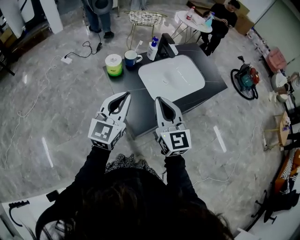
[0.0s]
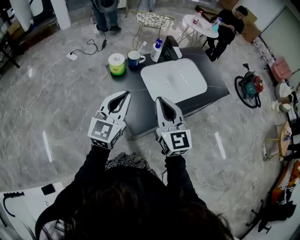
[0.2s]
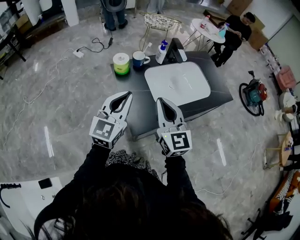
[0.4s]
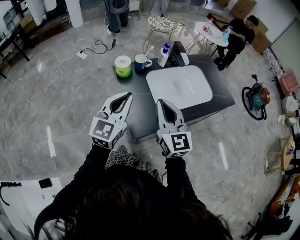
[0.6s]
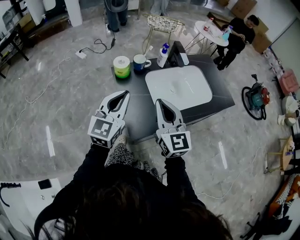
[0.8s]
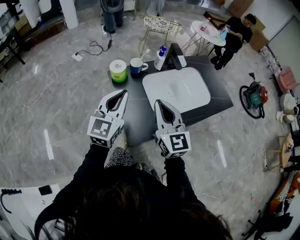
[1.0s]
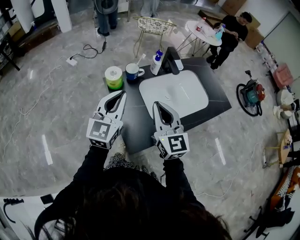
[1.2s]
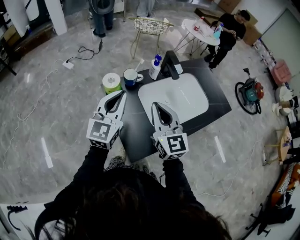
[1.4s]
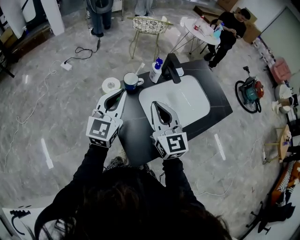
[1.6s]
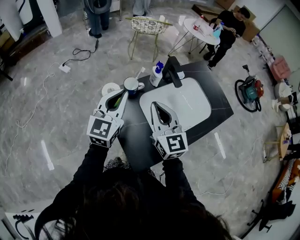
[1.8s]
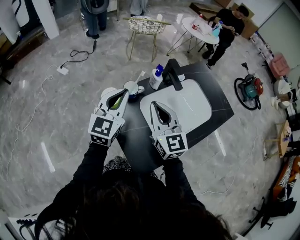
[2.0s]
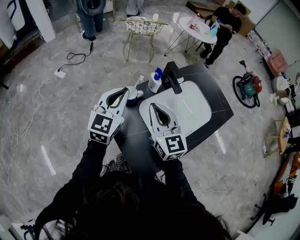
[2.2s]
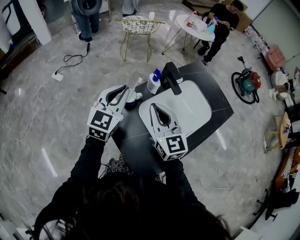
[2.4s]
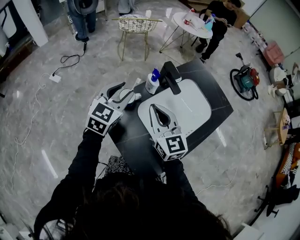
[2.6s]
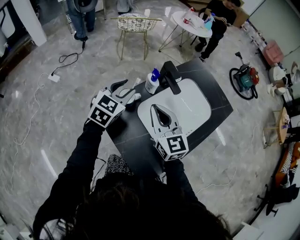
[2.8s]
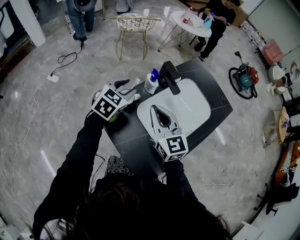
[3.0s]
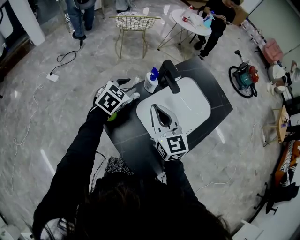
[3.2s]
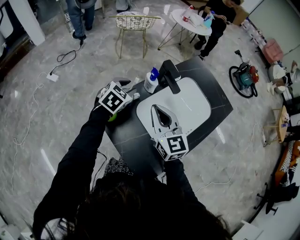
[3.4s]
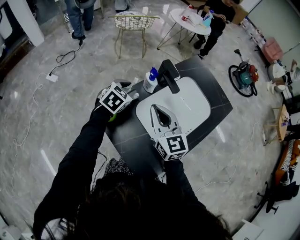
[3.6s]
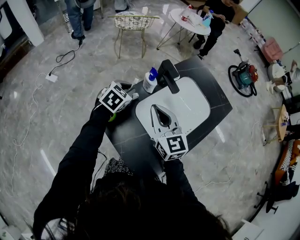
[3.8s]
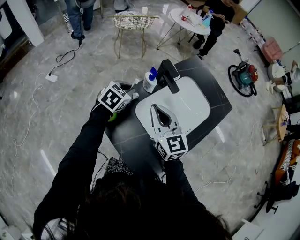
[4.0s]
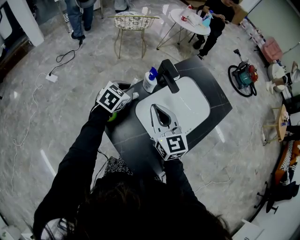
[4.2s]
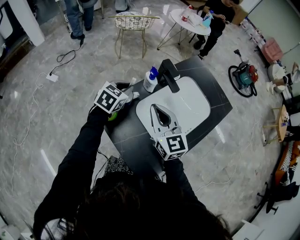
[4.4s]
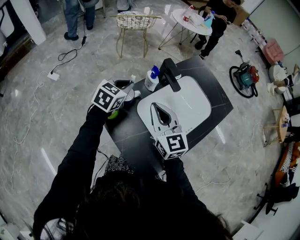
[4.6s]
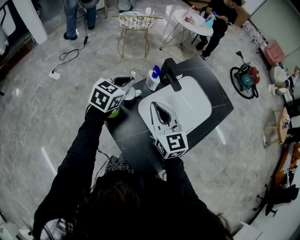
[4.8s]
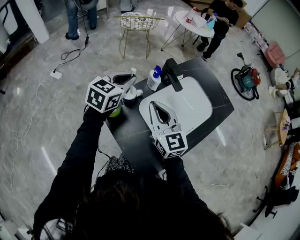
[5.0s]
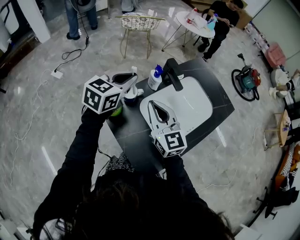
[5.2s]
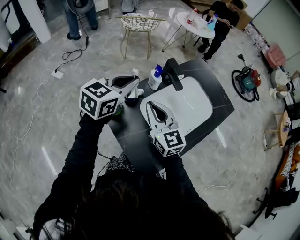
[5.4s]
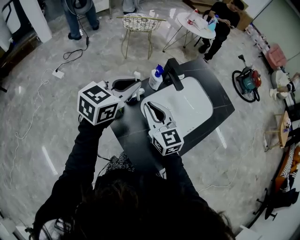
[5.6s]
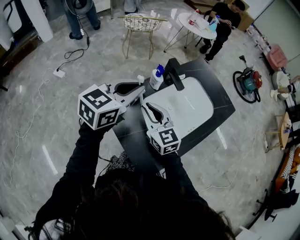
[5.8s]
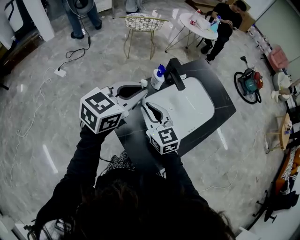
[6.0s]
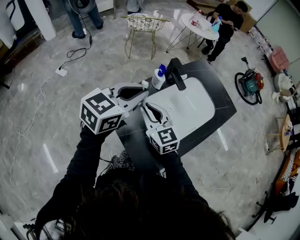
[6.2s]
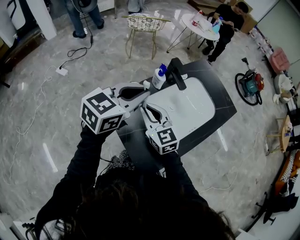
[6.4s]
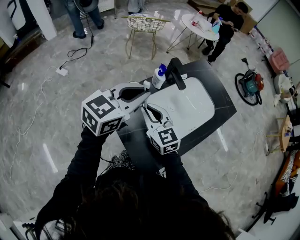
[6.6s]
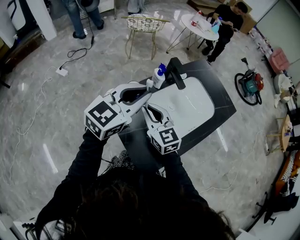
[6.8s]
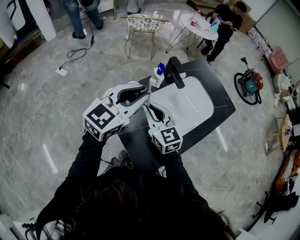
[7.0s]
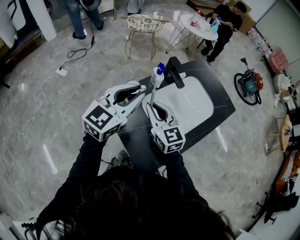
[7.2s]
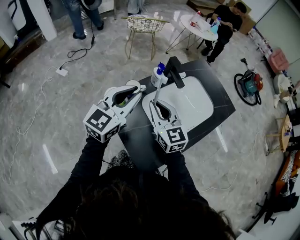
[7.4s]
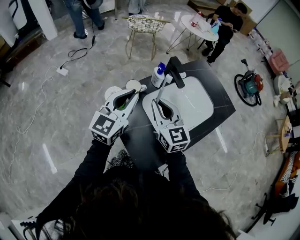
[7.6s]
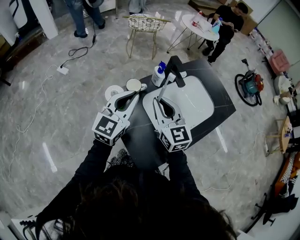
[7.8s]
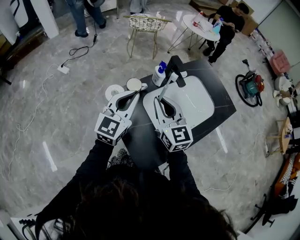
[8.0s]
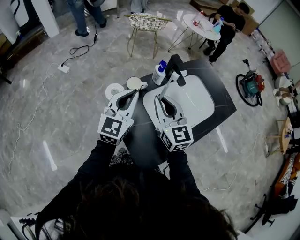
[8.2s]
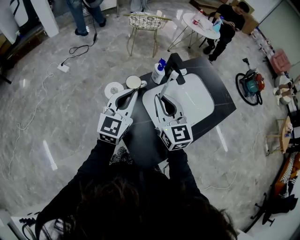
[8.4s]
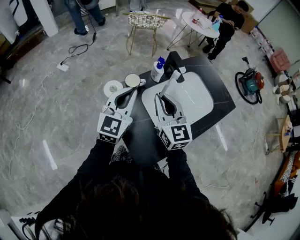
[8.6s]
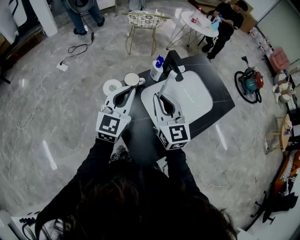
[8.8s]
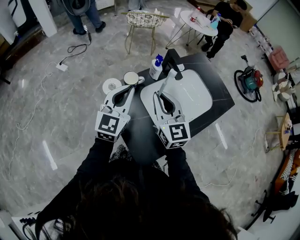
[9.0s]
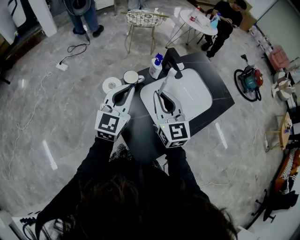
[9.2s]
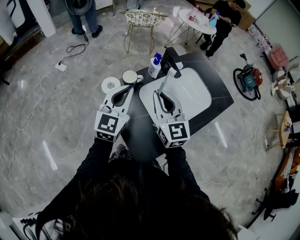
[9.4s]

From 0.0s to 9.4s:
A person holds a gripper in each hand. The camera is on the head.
From 0.0s to 1.6s: The grippers both shift forward by approximately 15 cm.
From 1.6s to 3.2s: The right gripper heads forward, covering about 10 cm; the left gripper travels forward and downward by some 20 cm, points its fingers about 40 degrees further downward, and opens up.
From 3.2s to 4.8s: The left gripper closes up.
From 4.8s to 6.2s: The left gripper travels upward and backward by approximately 15 cm. The right gripper moves some 5 cm.
From 6.2s to 7.8s: The right gripper ends up some 5 cm from where it was, while the left gripper moves downward, some 5 cm, and swivels some 30 degrees.
From 7.8s to 9.4s: The grippers stay close to where they were, moving slightly.

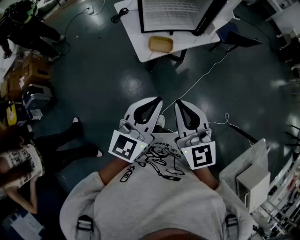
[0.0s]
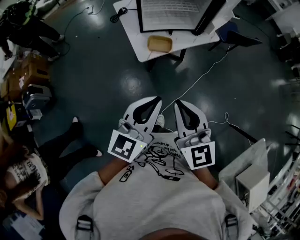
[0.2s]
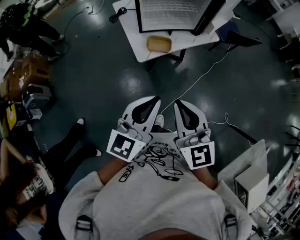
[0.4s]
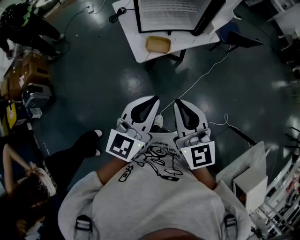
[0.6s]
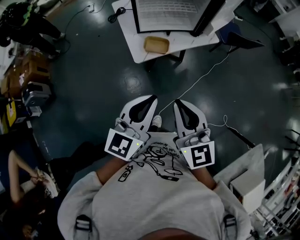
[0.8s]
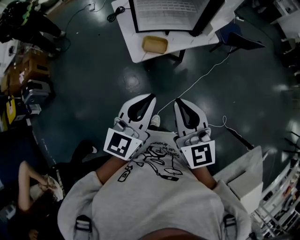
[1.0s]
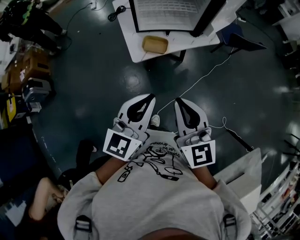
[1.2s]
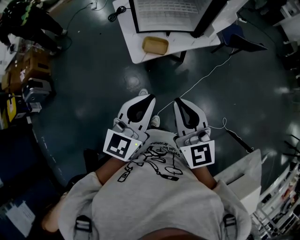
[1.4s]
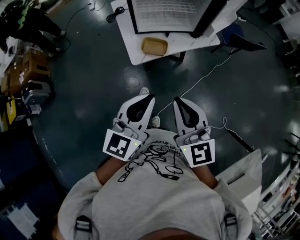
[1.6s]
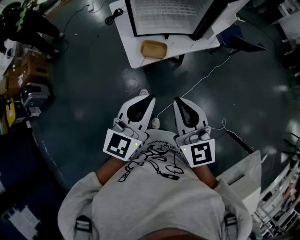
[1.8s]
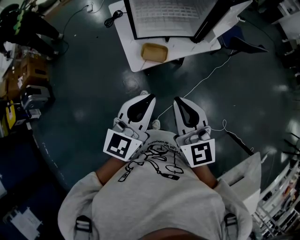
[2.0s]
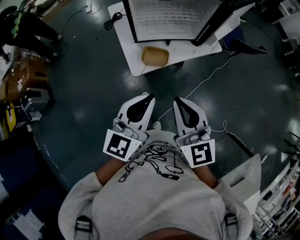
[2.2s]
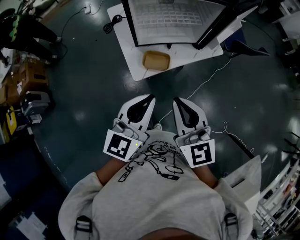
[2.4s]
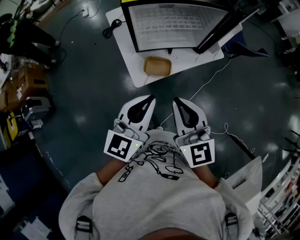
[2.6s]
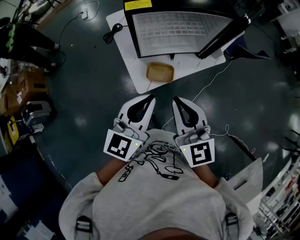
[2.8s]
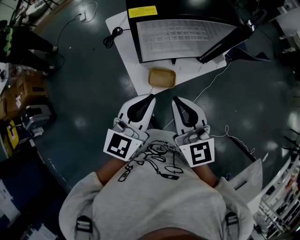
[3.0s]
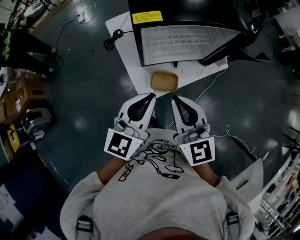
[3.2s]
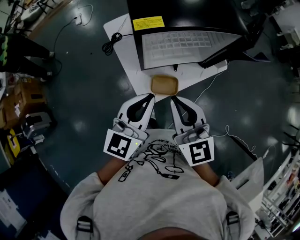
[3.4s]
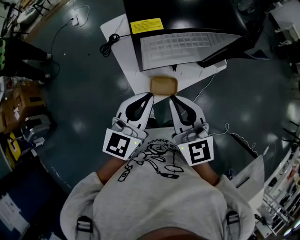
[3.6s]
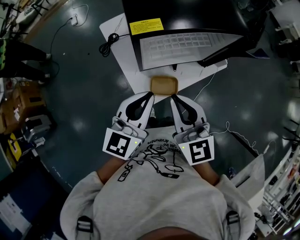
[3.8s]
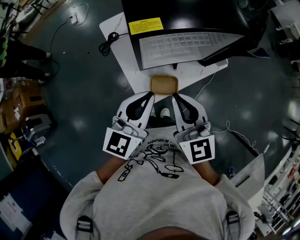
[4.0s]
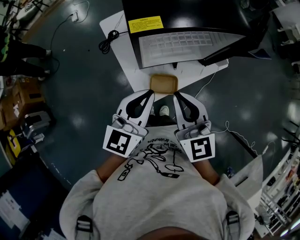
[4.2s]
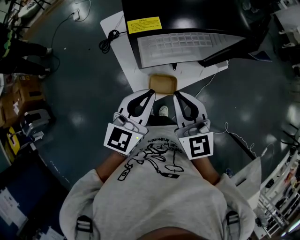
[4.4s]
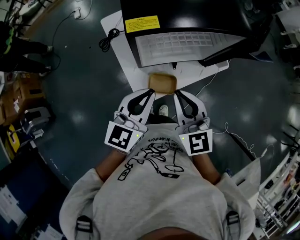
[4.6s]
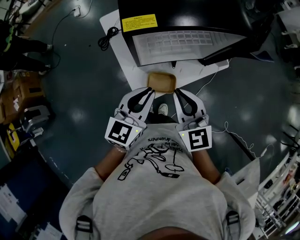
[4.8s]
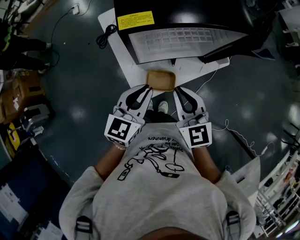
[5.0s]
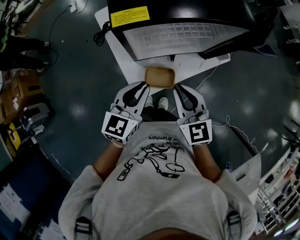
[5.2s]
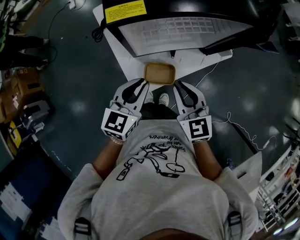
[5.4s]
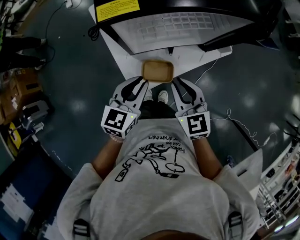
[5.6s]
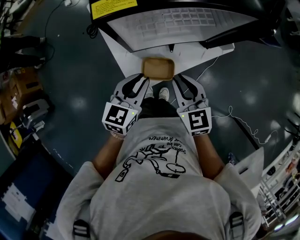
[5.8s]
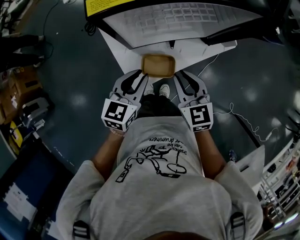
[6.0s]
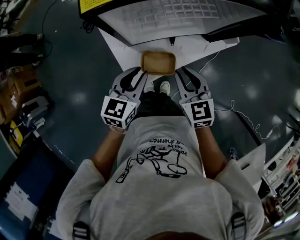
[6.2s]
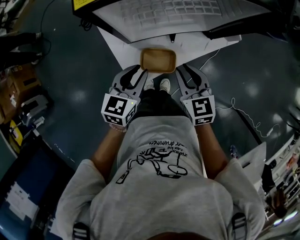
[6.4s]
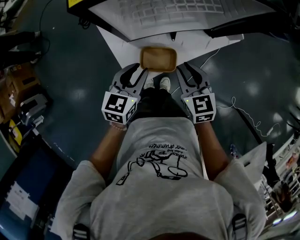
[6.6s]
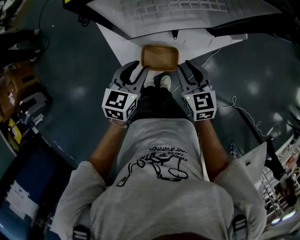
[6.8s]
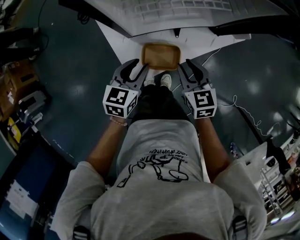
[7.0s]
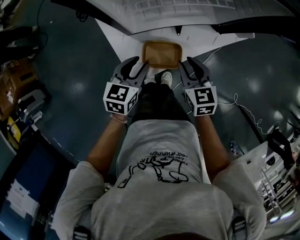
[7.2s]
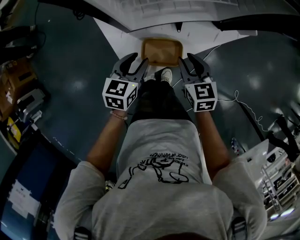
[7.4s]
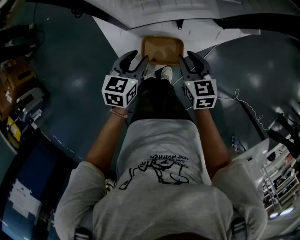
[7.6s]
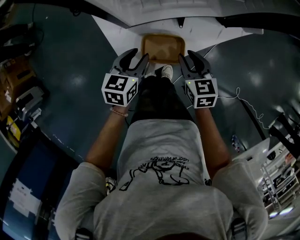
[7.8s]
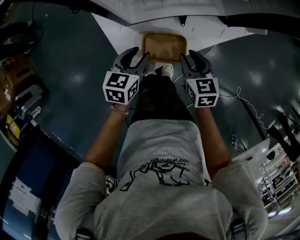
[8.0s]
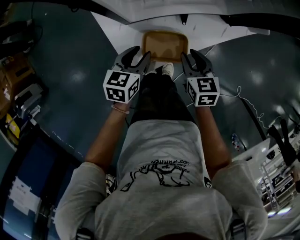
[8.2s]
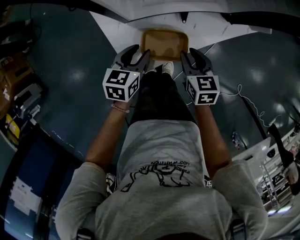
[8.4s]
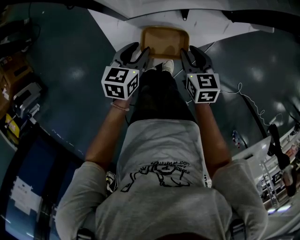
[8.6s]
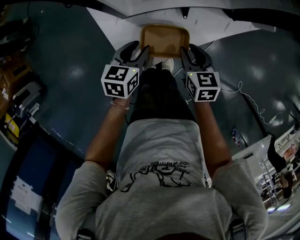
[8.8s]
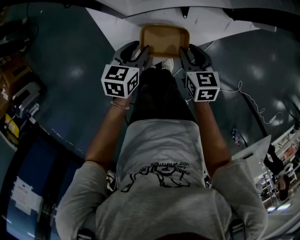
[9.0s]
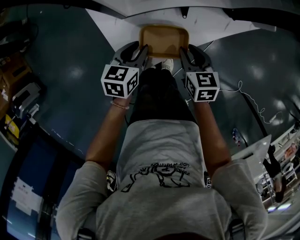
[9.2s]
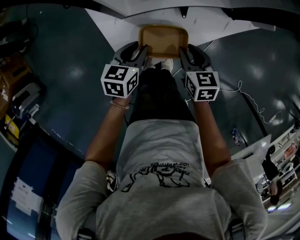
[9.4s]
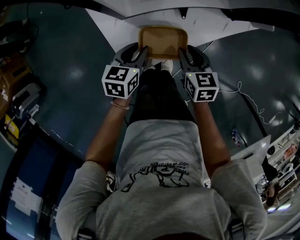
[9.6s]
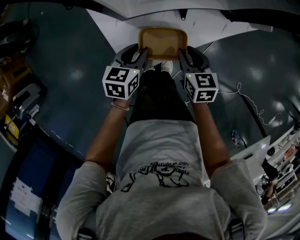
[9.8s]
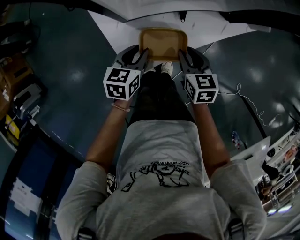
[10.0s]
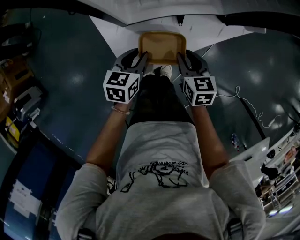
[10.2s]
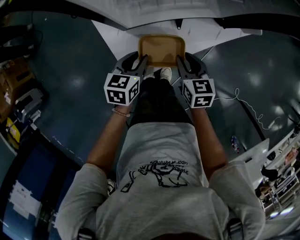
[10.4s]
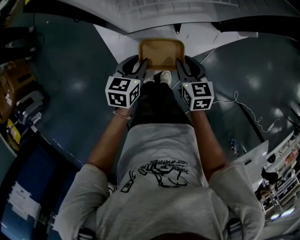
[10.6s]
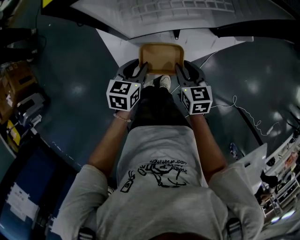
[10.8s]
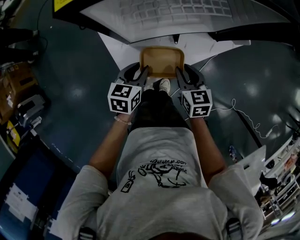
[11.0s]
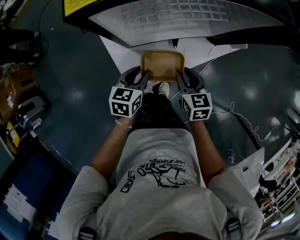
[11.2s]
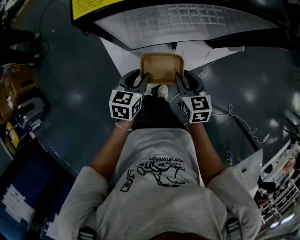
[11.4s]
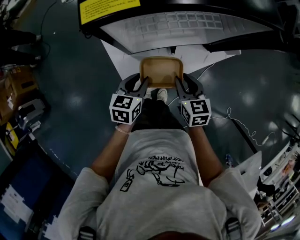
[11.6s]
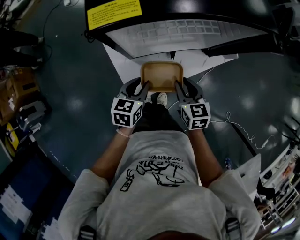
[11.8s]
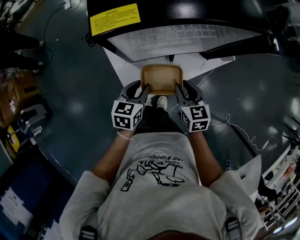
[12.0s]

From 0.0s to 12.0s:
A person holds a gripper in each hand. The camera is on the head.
From 0.0s to 1.6s: The right gripper is displaced forward and to the right by about 10 cm. Meanwhile the left gripper shifts roughly 5 cm forward.
From 1.6s to 3.0s: The left gripper moves forward, approximately 25 cm, while the right gripper moves forward and to the left, approximately 25 cm.
From 3.0s to 4.4s: Both grippers move forward, approximately 10 cm.
From 4.4s to 6.0s: Both grippers move downward, some 15 cm. The right gripper swivels some 20 degrees.
From 6.0s to 7.6s: Both grippers travel together downward, some 15 cm.
From 7.6s to 9.0s: Both grippers travel together downward, roughly 5 cm.
From 9.0s to 10.4s: The grippers move only a little.
From 10.4s to 12.0s: The two grippers go about 10 cm upward.

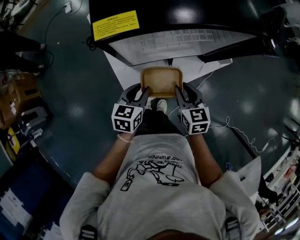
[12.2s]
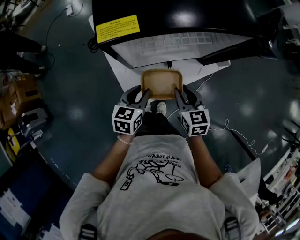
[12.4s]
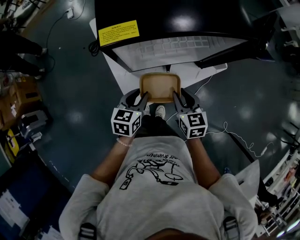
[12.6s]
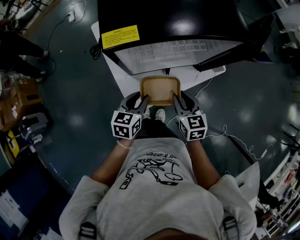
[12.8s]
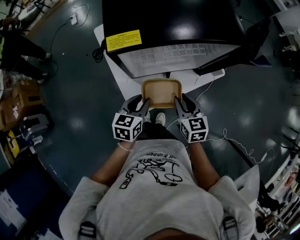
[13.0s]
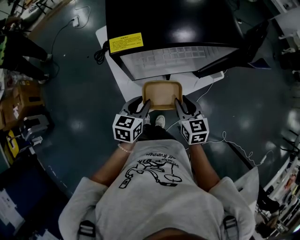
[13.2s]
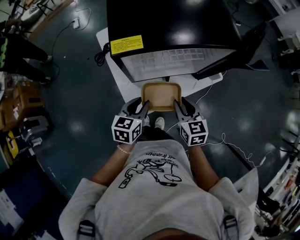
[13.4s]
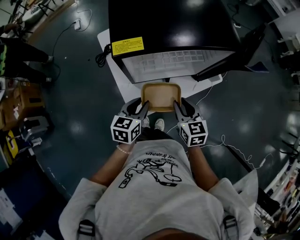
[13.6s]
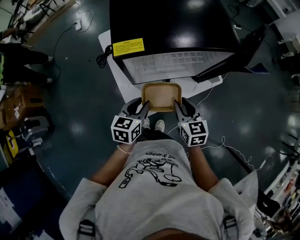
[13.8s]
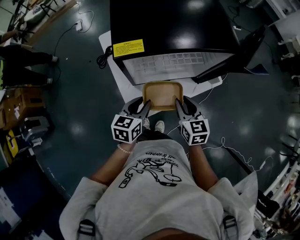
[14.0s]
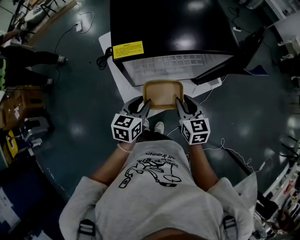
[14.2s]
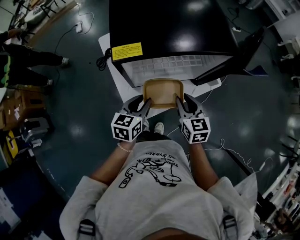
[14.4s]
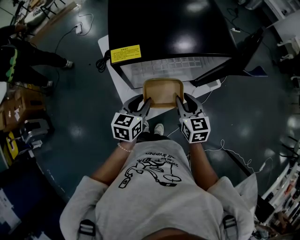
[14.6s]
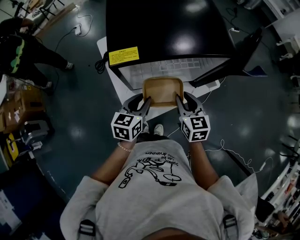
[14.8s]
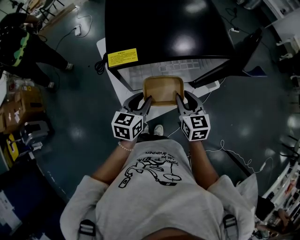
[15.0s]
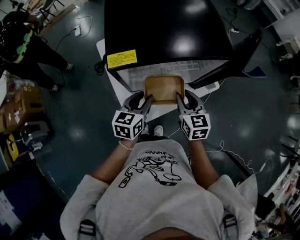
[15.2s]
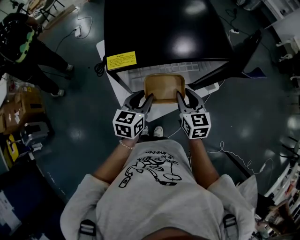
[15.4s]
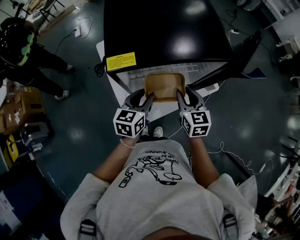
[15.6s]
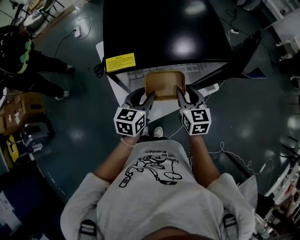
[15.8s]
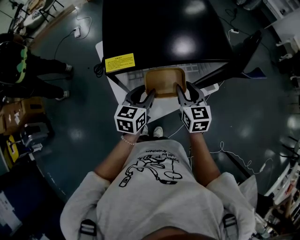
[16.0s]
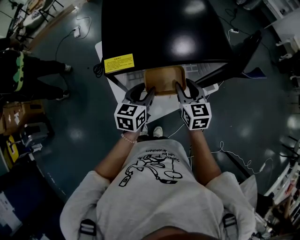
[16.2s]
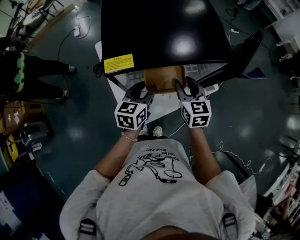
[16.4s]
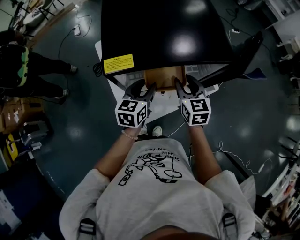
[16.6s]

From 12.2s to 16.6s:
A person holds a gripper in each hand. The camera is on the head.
From 12.2s to 13.6s: The two grippers go about 5 cm upward.
From 13.6s to 15.2s: Both grippers travel together forward, about 5 cm.
From 15.2s to 16.6s: Both grippers move forward, roughly 5 cm.
